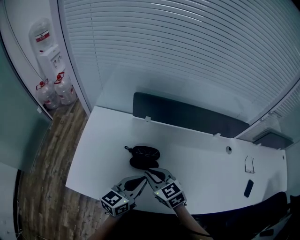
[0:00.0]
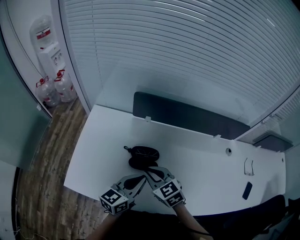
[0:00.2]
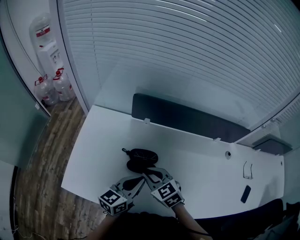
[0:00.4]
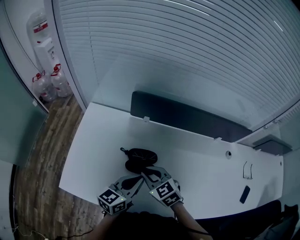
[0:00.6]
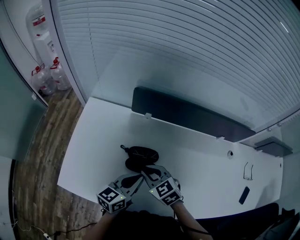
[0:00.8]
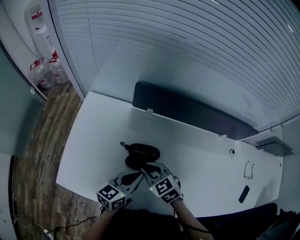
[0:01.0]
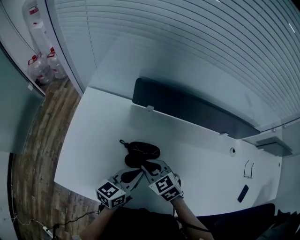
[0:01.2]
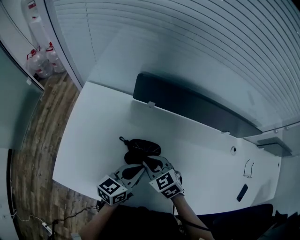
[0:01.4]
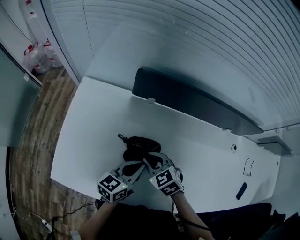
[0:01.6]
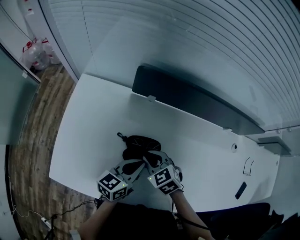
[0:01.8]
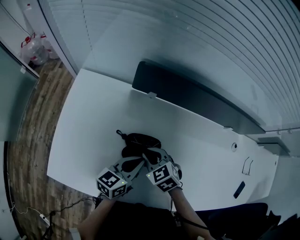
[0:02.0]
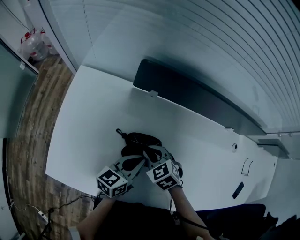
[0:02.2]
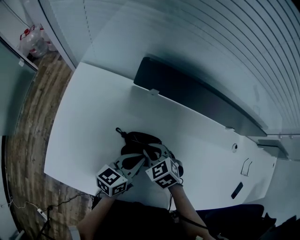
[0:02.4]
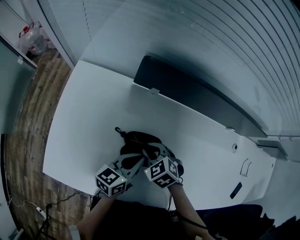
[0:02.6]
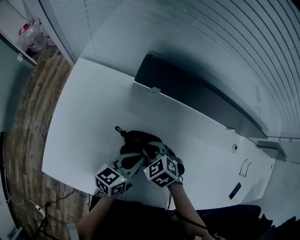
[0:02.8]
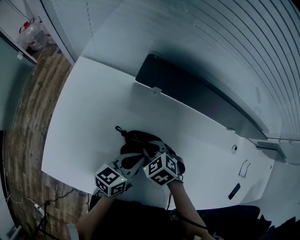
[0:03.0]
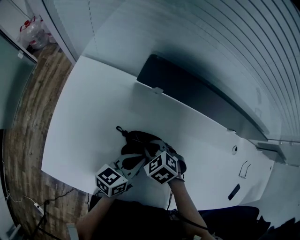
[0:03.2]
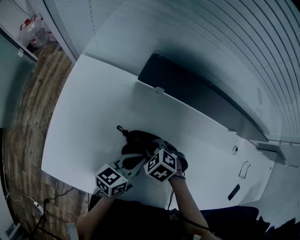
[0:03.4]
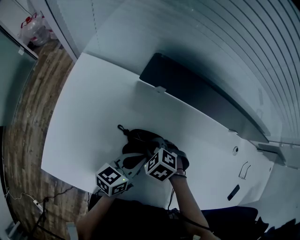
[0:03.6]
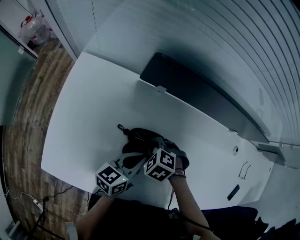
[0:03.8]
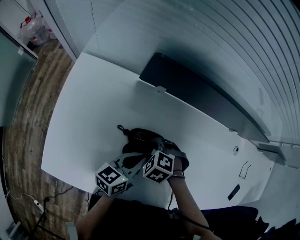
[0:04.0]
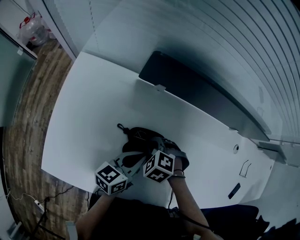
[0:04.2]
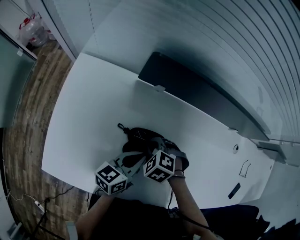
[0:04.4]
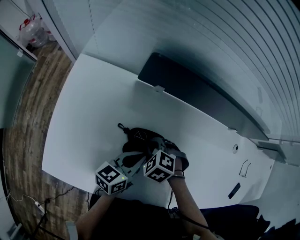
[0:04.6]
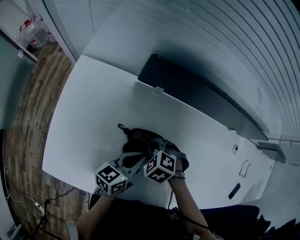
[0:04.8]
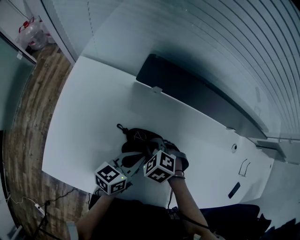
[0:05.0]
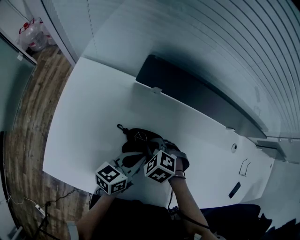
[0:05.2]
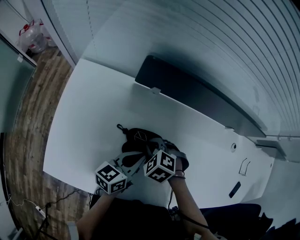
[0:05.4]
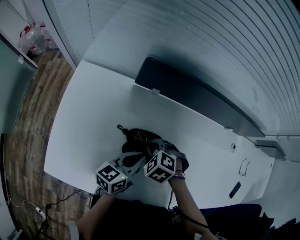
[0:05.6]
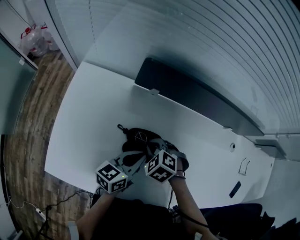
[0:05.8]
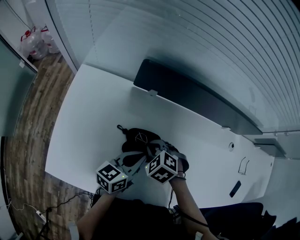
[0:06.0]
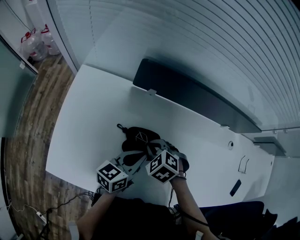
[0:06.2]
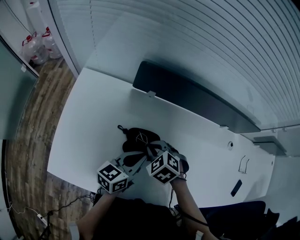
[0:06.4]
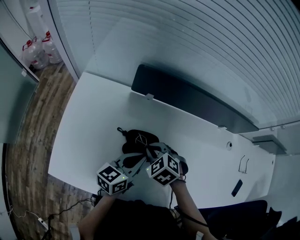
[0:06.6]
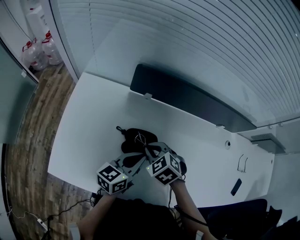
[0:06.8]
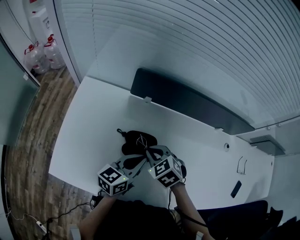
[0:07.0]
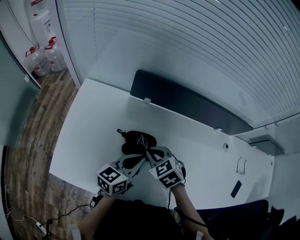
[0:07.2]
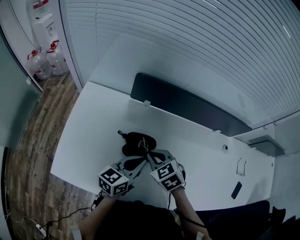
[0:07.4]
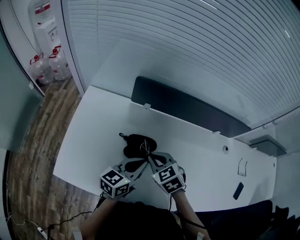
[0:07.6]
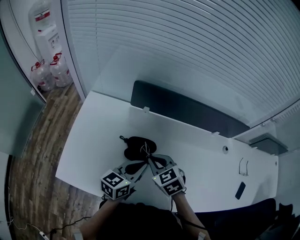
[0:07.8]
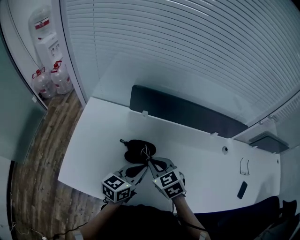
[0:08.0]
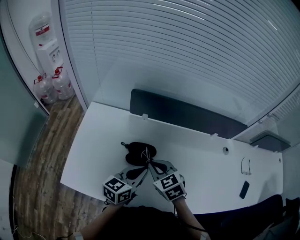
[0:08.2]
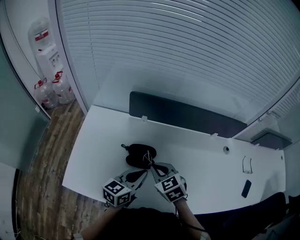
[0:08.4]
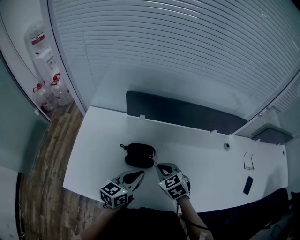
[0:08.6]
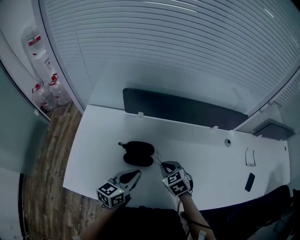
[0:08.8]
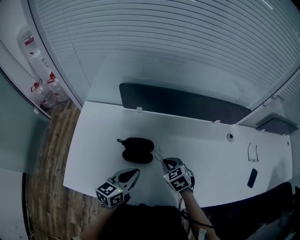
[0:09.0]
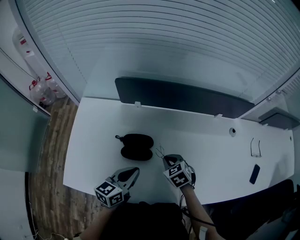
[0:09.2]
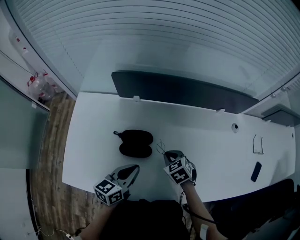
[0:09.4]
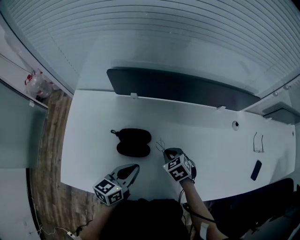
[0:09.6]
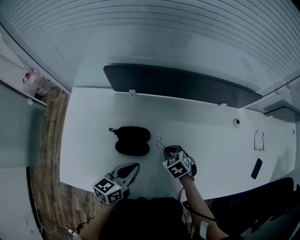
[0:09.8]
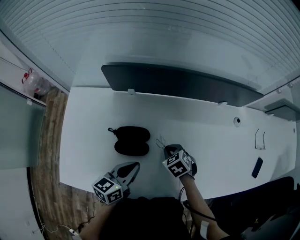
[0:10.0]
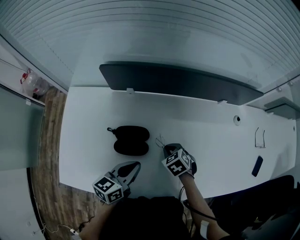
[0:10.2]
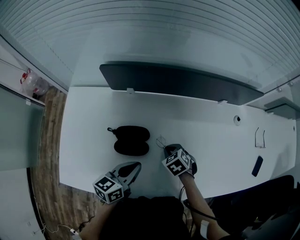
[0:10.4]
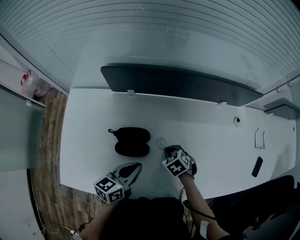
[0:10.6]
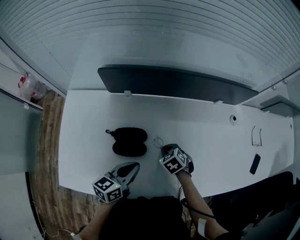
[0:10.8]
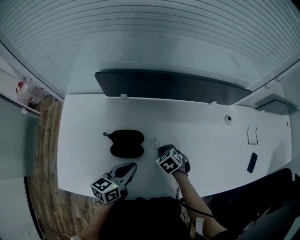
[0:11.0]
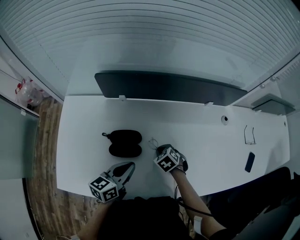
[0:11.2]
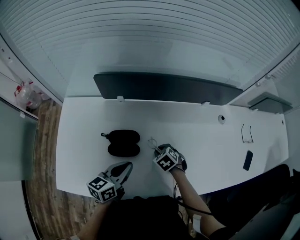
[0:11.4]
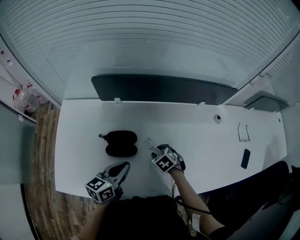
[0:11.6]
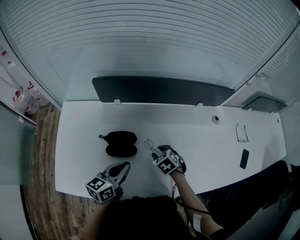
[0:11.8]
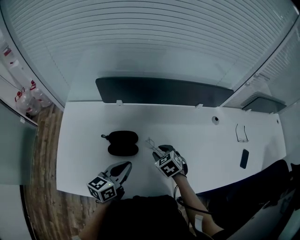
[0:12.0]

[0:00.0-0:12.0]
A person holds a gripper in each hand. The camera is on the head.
0:00.0 to 0:01.6: The grippers both shift downward and forward by about 10 cm.
0:01.6 to 0:03.0: The right gripper travels downward by approximately 5 cm, and rotates roughly 20 degrees.
0:03.0 to 0:06.0: The grippers stay close to where they were, moving slightly.
0:06.0 to 0:07.6: Both grippers move upward, about 5 cm. The right gripper swivels roughly 30 degrees.
0:07.6 to 0:09.0: The right gripper shifts roughly 10 cm to the right and downward, while the left gripper shifts by roughly 5 cm.
0:09.0 to 0:10.4: The right gripper shifts approximately 10 cm downward.
0:10.4 to 0:12.0: The right gripper moves upward, some 5 cm, and opens up.

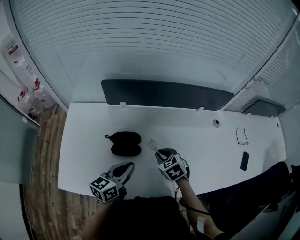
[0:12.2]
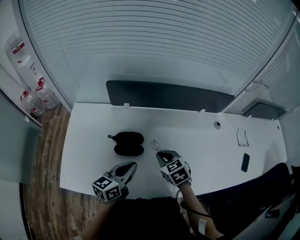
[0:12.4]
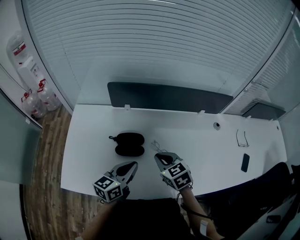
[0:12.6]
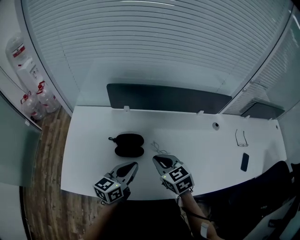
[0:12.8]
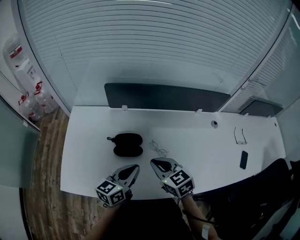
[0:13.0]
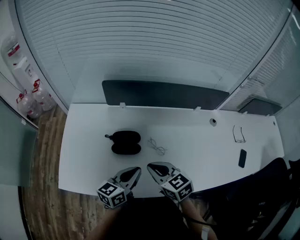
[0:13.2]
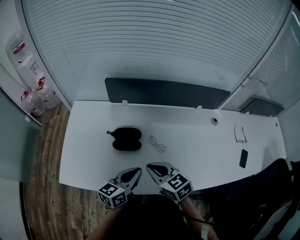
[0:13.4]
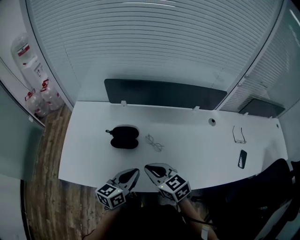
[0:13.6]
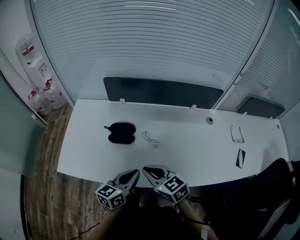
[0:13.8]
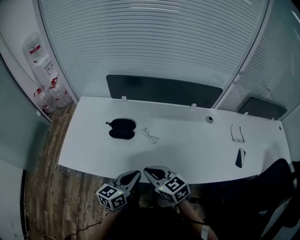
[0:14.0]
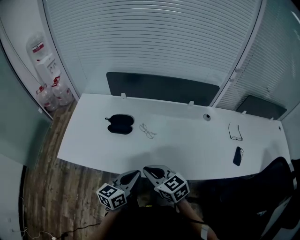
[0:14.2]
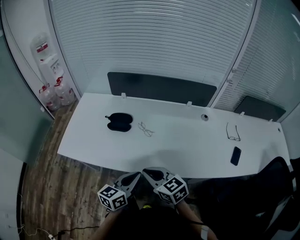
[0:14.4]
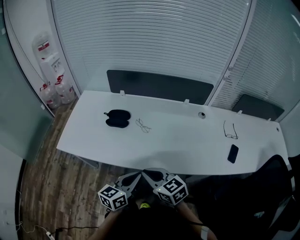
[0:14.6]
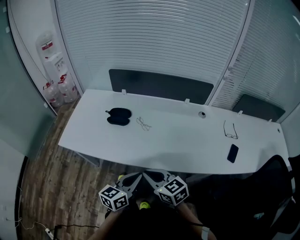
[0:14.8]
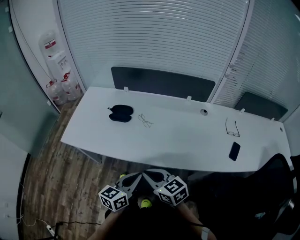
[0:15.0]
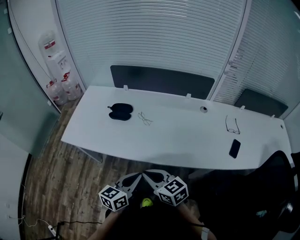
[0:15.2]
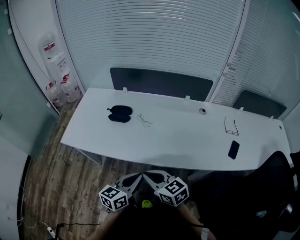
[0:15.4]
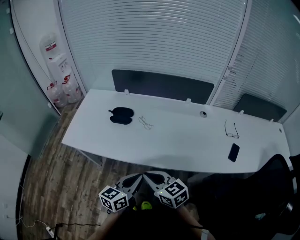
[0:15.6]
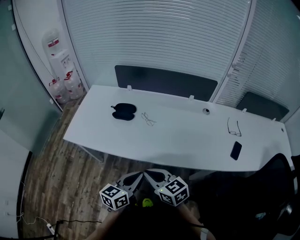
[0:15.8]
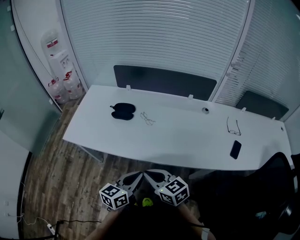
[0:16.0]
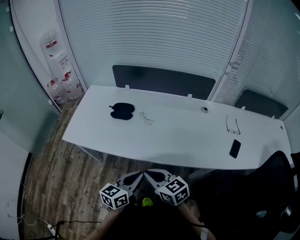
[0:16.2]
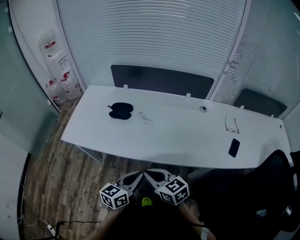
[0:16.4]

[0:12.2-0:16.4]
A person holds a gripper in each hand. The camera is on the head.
0:12.2 to 0:13.6: The right gripper travels backward and upward by approximately 15 cm, and turns by approximately 30 degrees. Meanwhile the left gripper travels backward by about 10 cm.
0:13.6 to 0:15.0: The left gripper travels backward and to the right by some 20 cm. Meanwhile the right gripper is displaced backward by approximately 20 cm.
0:15.0 to 0:16.4: There are only small adjustments of the grippers.

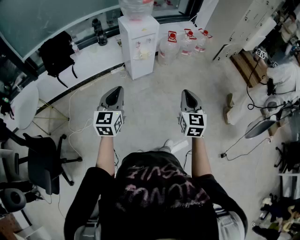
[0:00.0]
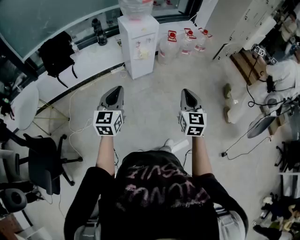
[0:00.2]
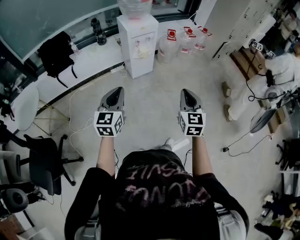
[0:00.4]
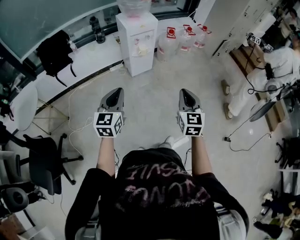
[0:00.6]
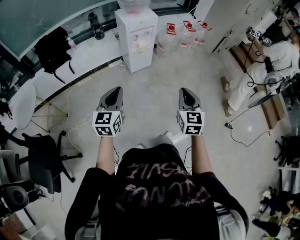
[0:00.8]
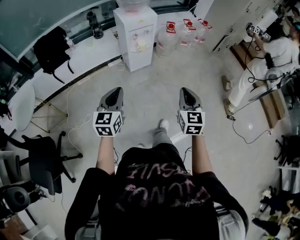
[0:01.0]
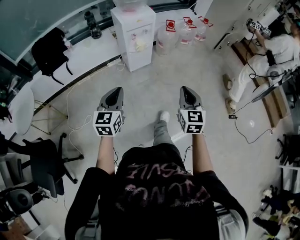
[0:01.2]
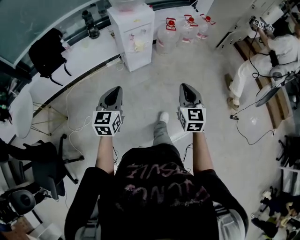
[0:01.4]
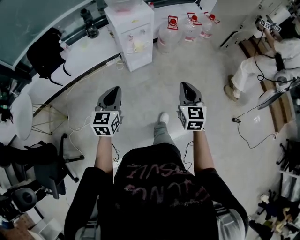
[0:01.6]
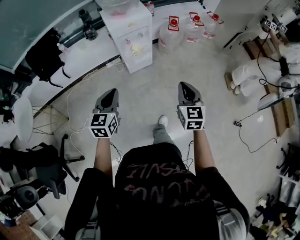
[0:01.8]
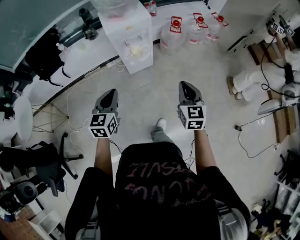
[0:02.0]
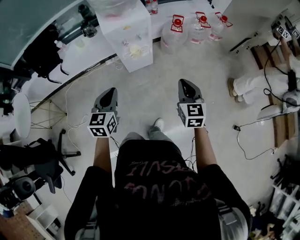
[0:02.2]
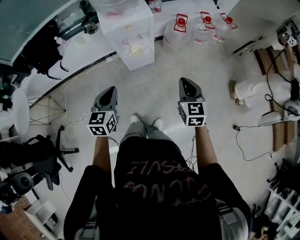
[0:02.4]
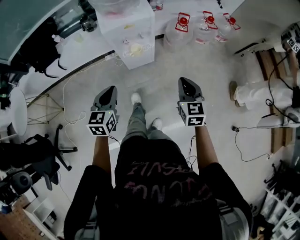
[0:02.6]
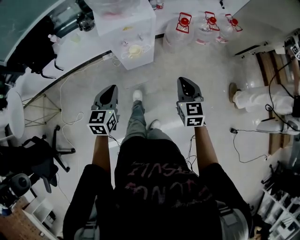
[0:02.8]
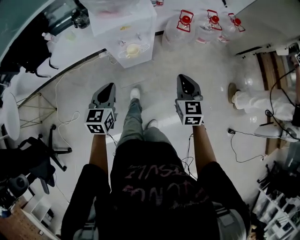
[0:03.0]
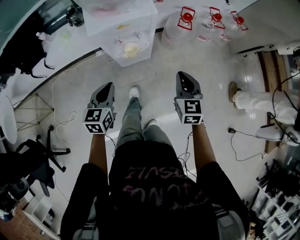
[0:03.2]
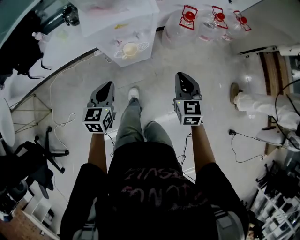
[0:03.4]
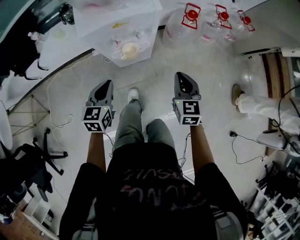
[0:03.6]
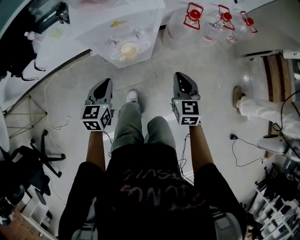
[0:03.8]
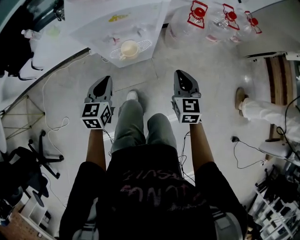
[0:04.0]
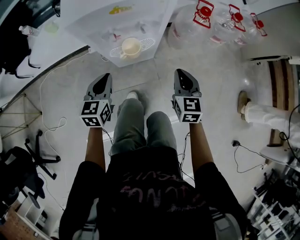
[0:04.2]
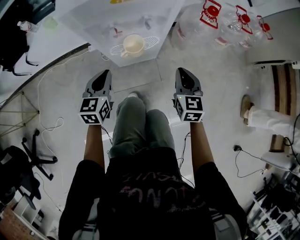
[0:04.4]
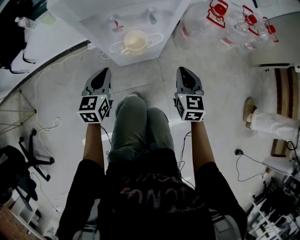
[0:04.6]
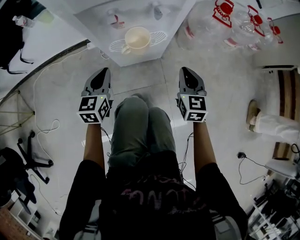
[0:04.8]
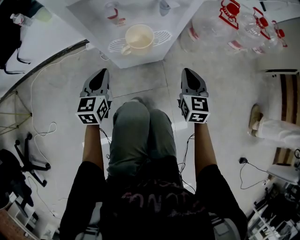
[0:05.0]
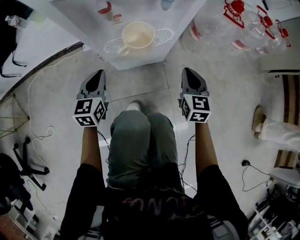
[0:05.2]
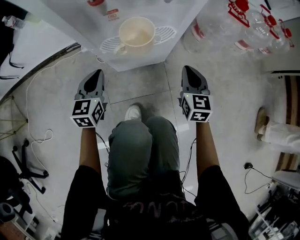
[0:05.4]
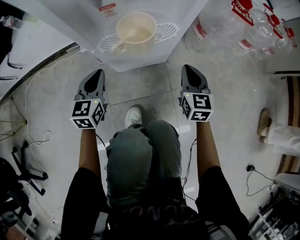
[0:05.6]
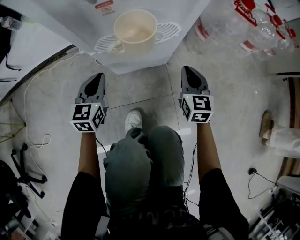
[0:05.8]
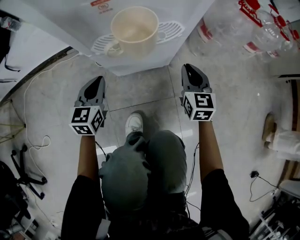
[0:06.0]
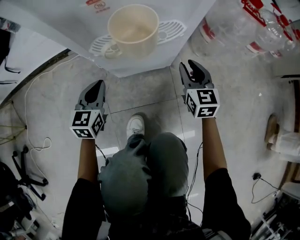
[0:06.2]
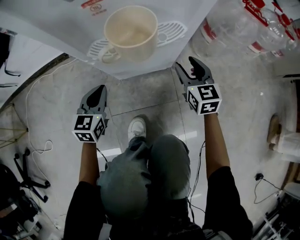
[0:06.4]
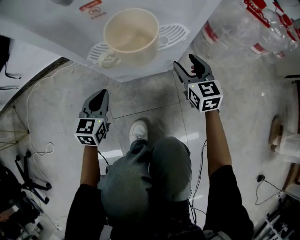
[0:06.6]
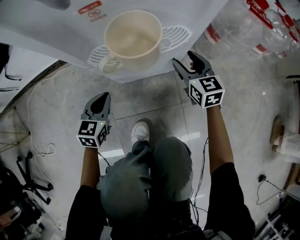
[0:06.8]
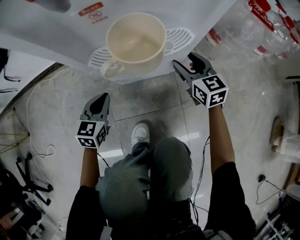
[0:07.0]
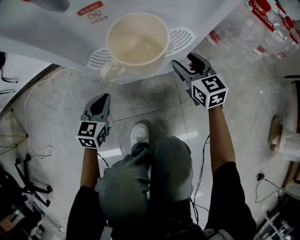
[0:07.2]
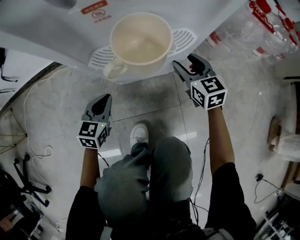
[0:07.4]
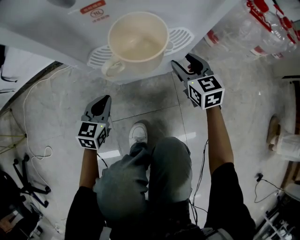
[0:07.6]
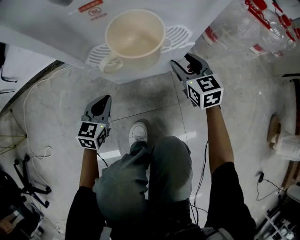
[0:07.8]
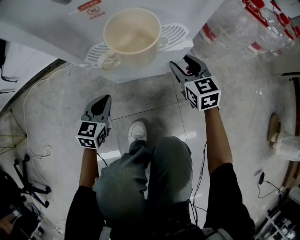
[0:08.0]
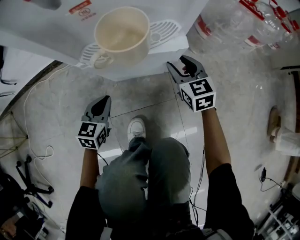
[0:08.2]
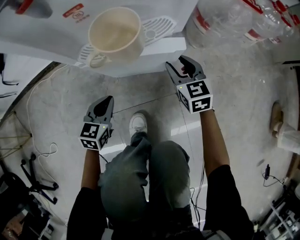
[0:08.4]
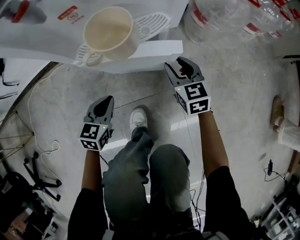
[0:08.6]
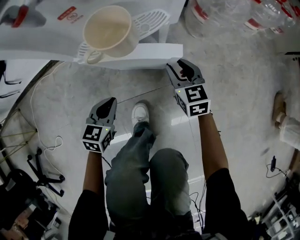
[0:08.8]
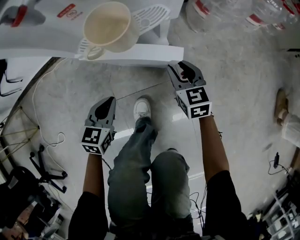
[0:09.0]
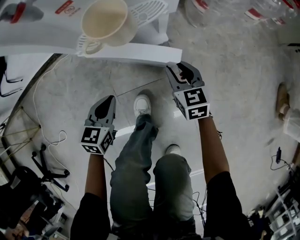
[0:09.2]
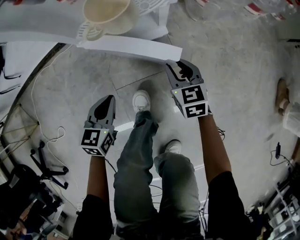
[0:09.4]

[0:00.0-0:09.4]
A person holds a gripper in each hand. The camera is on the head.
0:00.0 to 0:01.6: The left gripper travels forward and downward by roughly 20 cm; the right gripper goes approximately 20 cm forward.
0:01.6 to 0:03.2: Both grippers move forward and downward, some 40 cm.
0:03.2 to 0:04.8: Both grippers move downward, roughly 35 cm.
0:04.8 to 0:06.2: The right gripper moves downward and forward, some 20 cm, and opens its fingers. The left gripper is displaced downward by some 20 cm.
0:06.2 to 0:07.8: The left gripper moves downward, about 5 cm. Meanwhile the right gripper shifts by roughly 5 cm, and opens up.
0:07.8 to 0:09.4: The right gripper shifts roughly 15 cm backward, while the left gripper is displaced backward and upward by approximately 15 cm.
